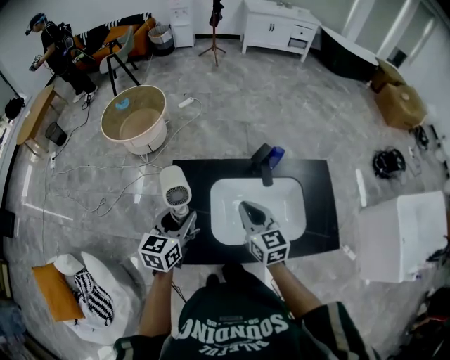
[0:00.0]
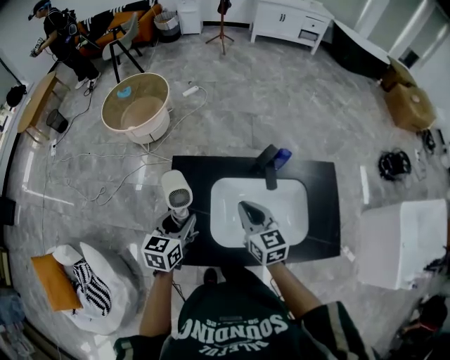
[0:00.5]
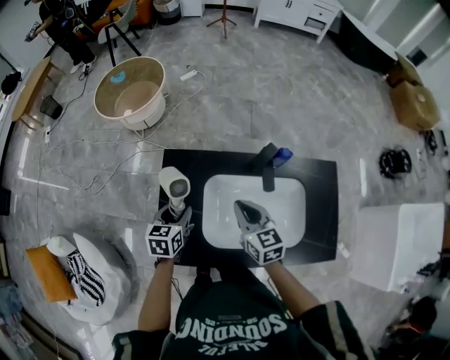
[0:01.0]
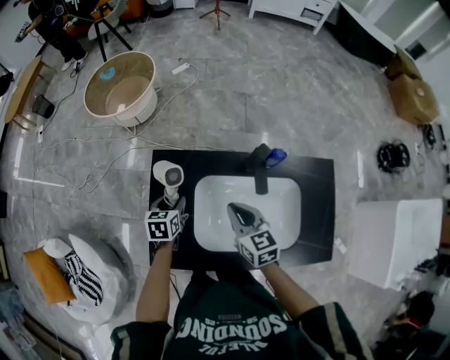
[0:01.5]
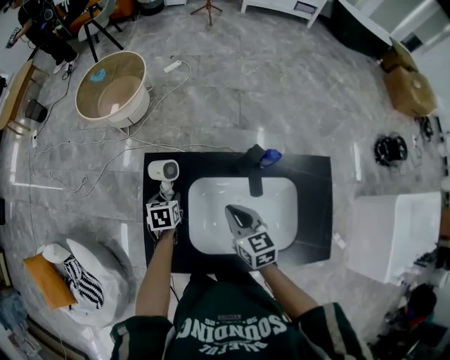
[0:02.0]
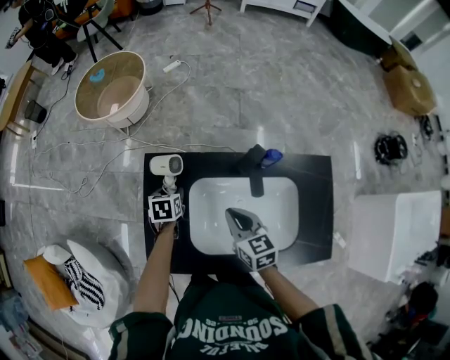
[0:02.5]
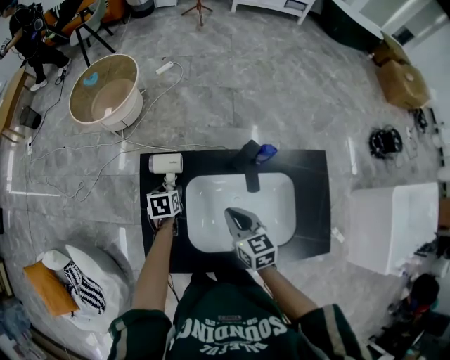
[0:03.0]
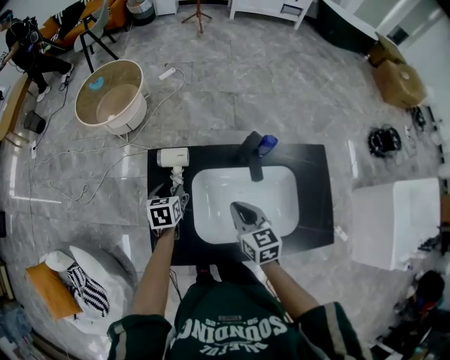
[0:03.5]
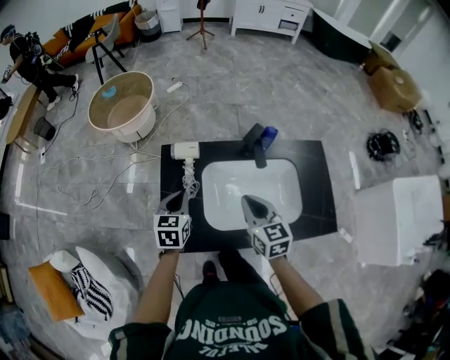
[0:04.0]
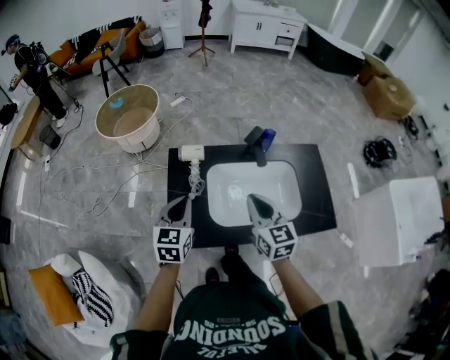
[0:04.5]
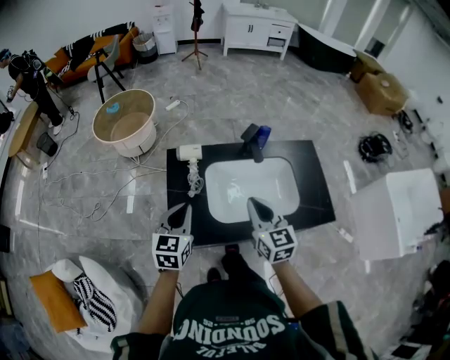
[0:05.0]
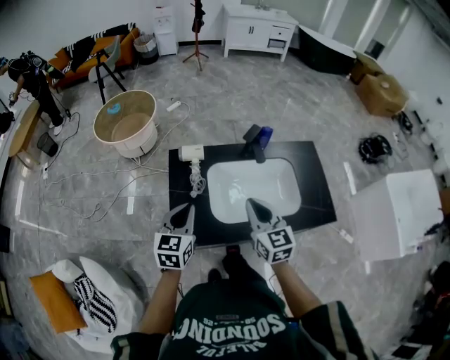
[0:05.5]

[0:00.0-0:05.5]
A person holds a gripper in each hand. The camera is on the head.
0:00.0 to 0:02.0: The left gripper heads downward and forward, covering roughly 25 cm, and tips its fingers downward by approximately 40 degrees. Meanwhile the right gripper heads downward and forward, covering about 10 cm.
0:02.0 to 0:03.5: The grippers stay close to where they were, moving slightly.
0:03.5 to 0:05.5: The left gripper heads backward and upward, covering some 25 cm, turns by some 30 degrees, and closes. Meanwhile the right gripper heads backward and upward, covering some 15 cm.

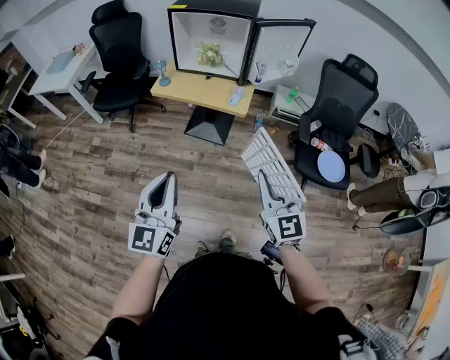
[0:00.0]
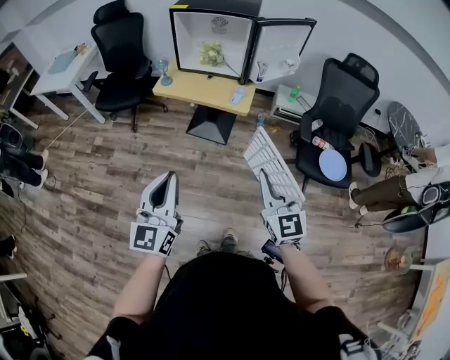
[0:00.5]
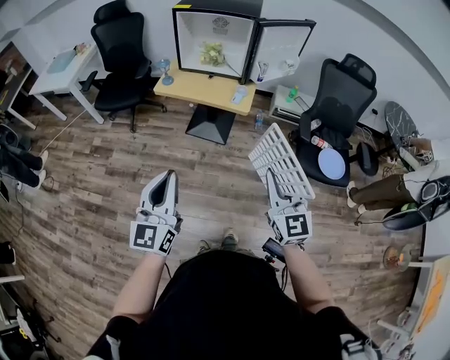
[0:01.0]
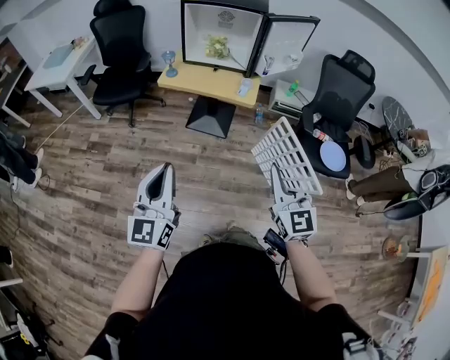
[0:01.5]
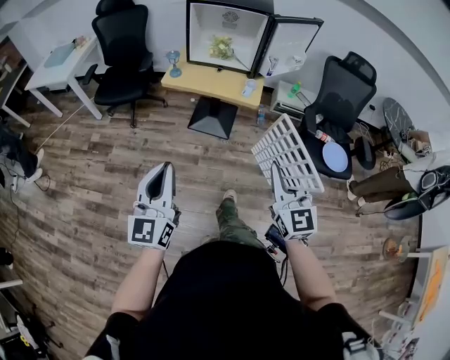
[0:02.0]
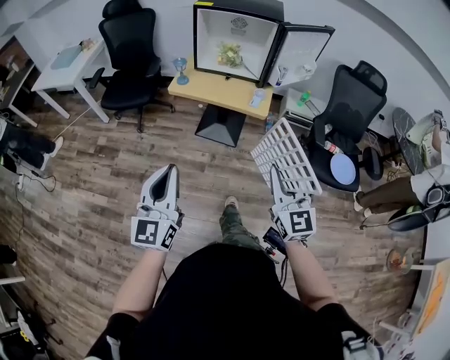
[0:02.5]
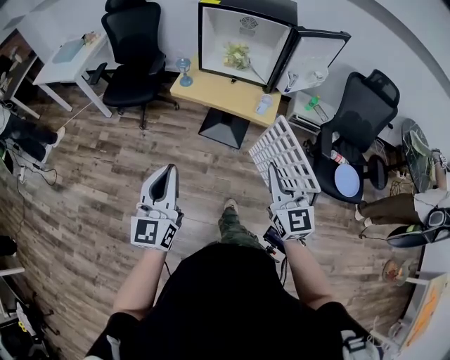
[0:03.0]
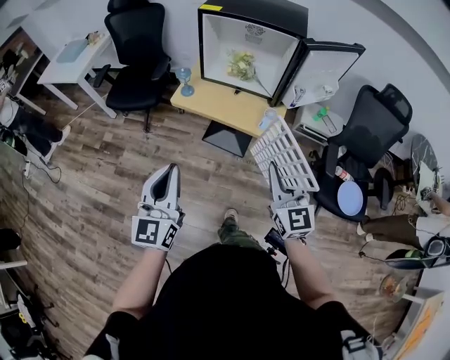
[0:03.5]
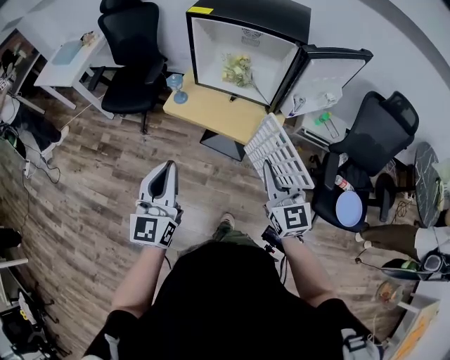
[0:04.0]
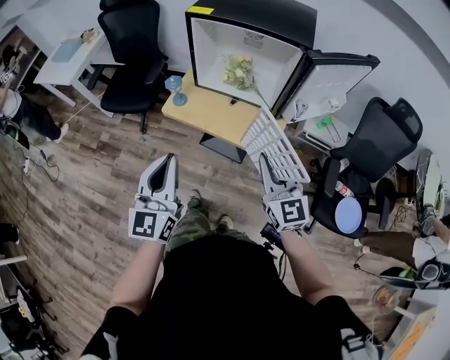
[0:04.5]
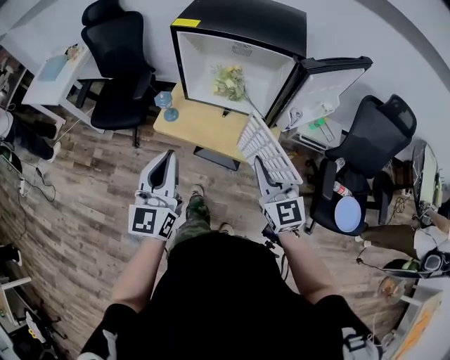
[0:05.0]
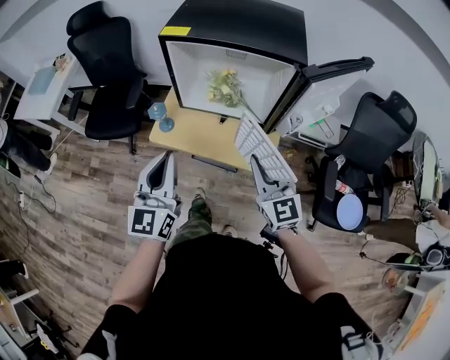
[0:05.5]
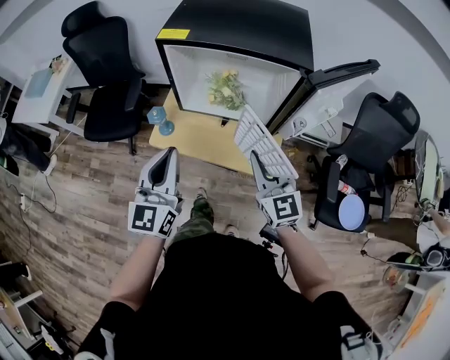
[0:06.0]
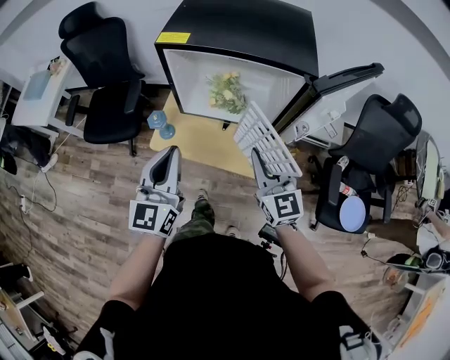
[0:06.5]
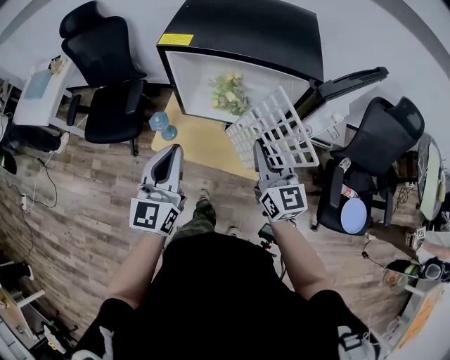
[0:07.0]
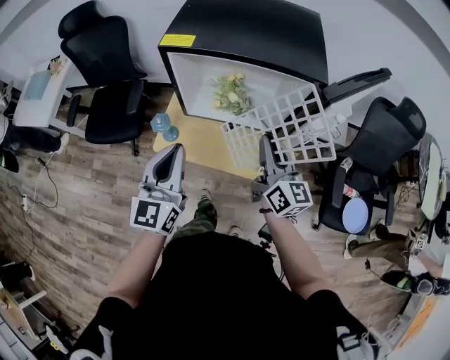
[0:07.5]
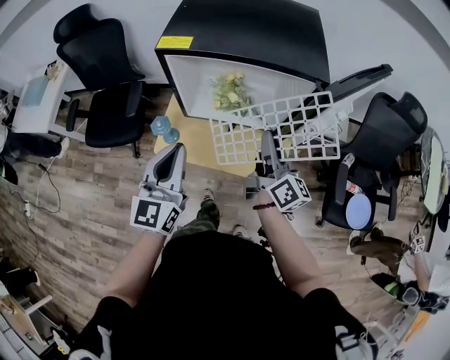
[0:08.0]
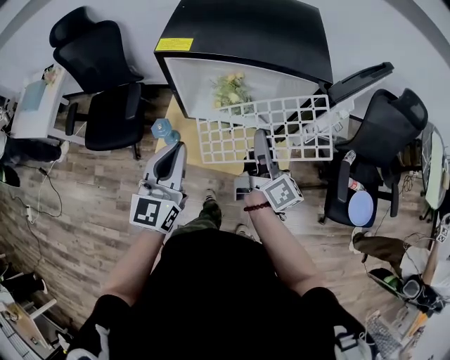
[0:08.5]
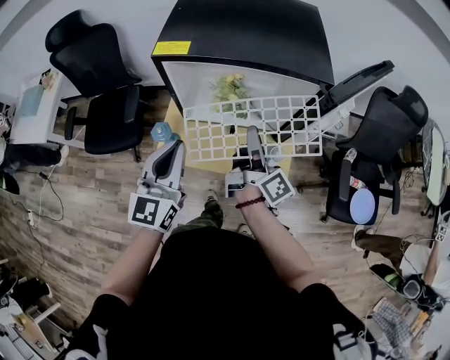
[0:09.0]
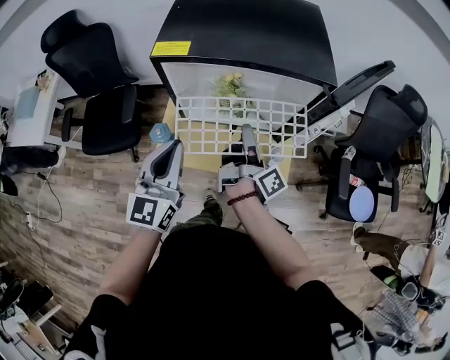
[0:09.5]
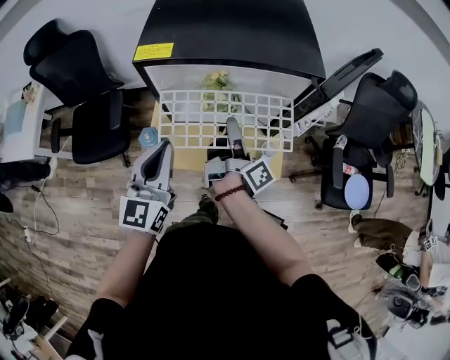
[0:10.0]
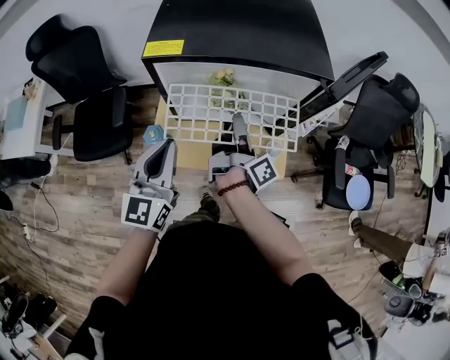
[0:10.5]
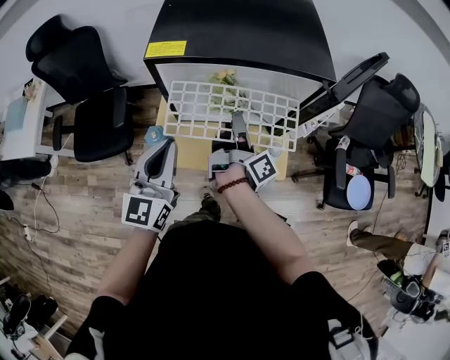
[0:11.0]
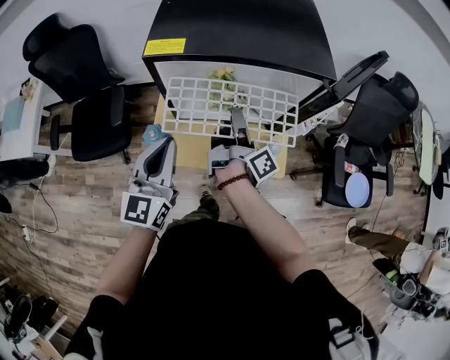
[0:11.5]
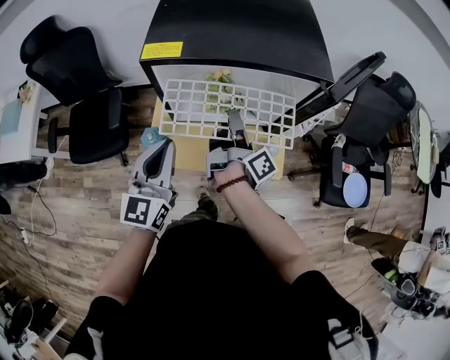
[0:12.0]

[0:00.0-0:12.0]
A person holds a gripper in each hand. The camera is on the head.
0:00.0 to 0:02.0: The left gripper heads to the left, covering approximately 10 cm; the right gripper is displaced to the left by roughly 5 cm.
0:02.0 to 0:04.0: The grippers both shift forward by some 30 cm.
0:04.0 to 0:06.0: Both grippers travel together forward, some 20 cm.
0:06.0 to 0:08.0: The grippers both shift forward by about 10 cm. The right gripper rotates around the line of its fingers by some 60 degrees, clockwise from behind.
0:08.0 to 0:10.0: The right gripper heads to the left, covering approximately 5 cm, and rolls clockwise, seen from behind, by approximately 40 degrees.
0:10.0 to 0:12.0: There are only small adjustments of the grippers.

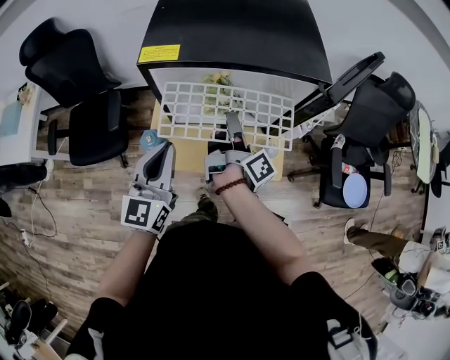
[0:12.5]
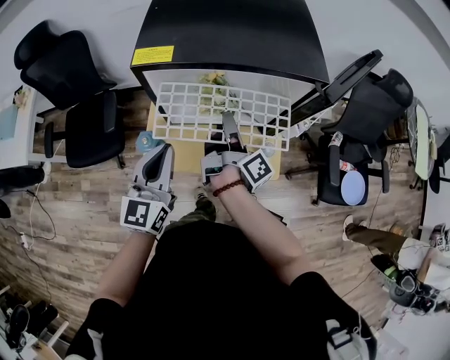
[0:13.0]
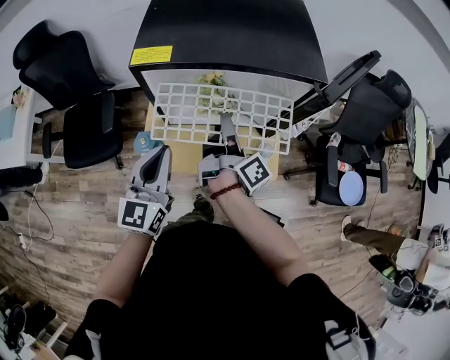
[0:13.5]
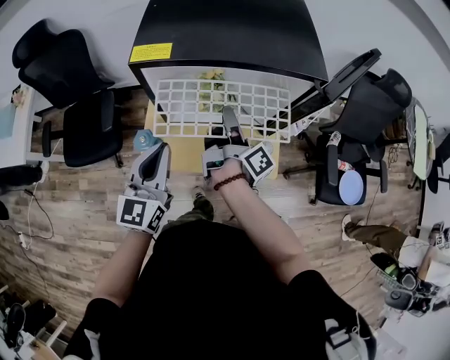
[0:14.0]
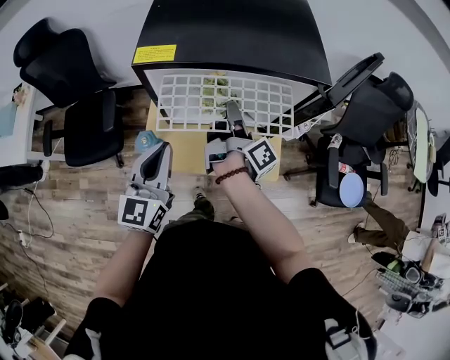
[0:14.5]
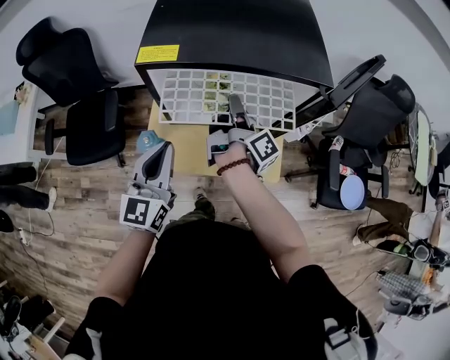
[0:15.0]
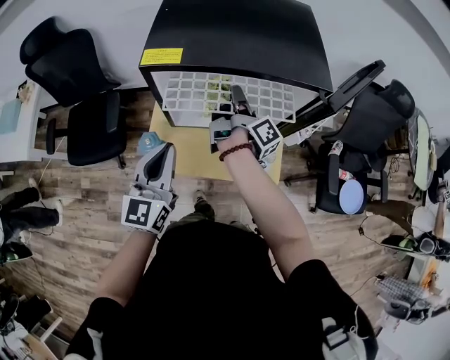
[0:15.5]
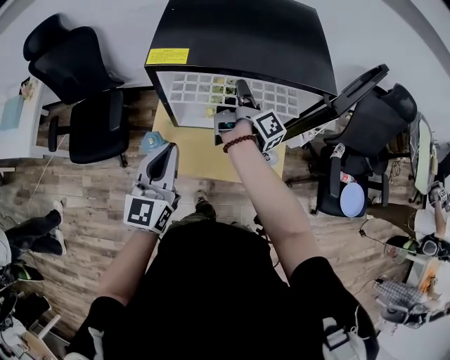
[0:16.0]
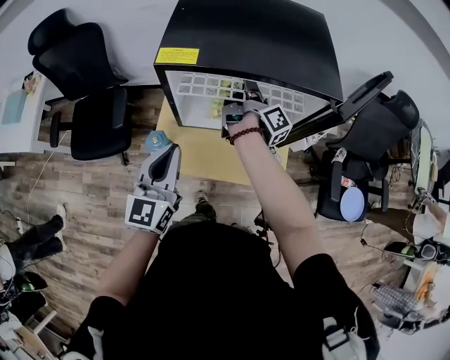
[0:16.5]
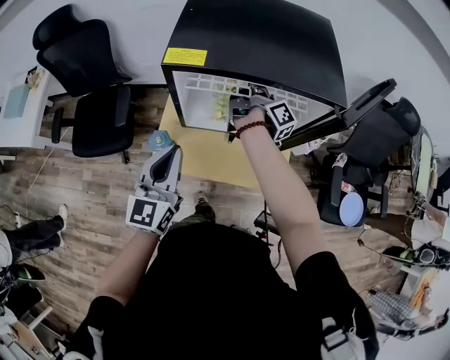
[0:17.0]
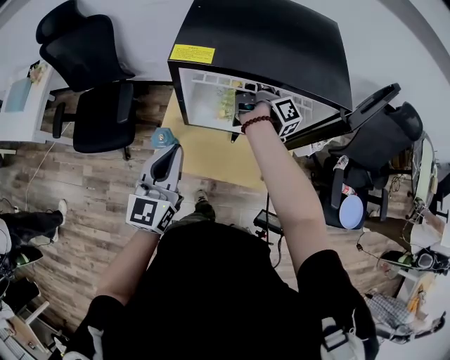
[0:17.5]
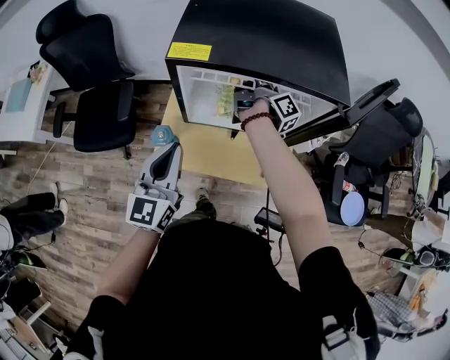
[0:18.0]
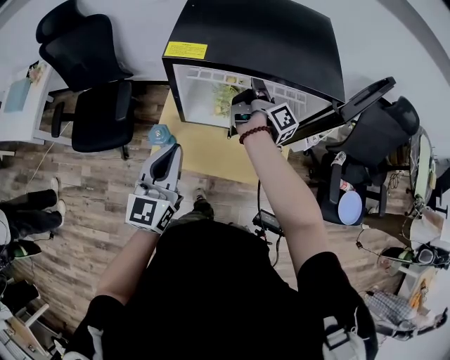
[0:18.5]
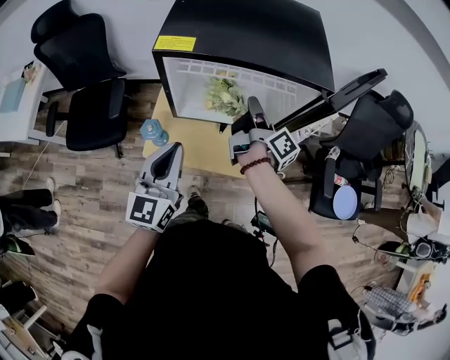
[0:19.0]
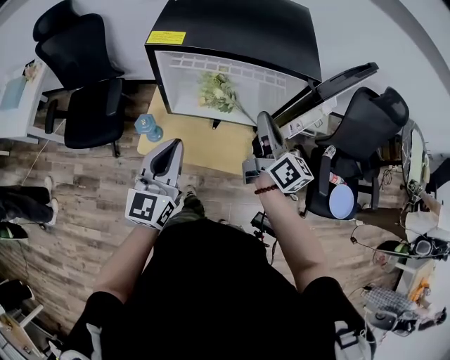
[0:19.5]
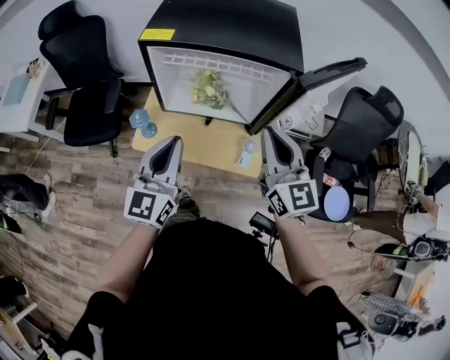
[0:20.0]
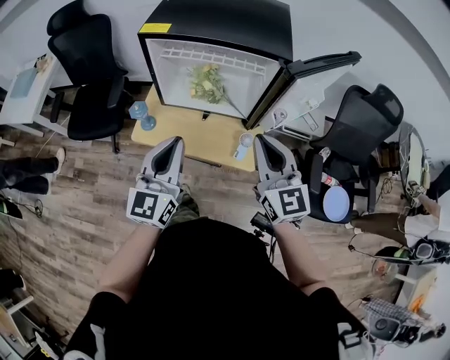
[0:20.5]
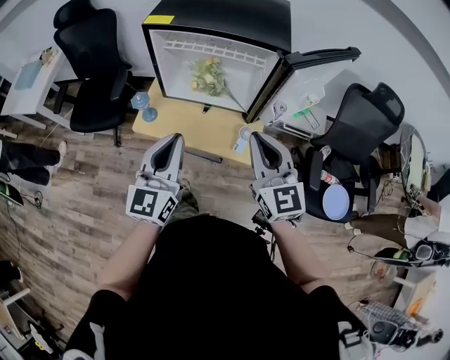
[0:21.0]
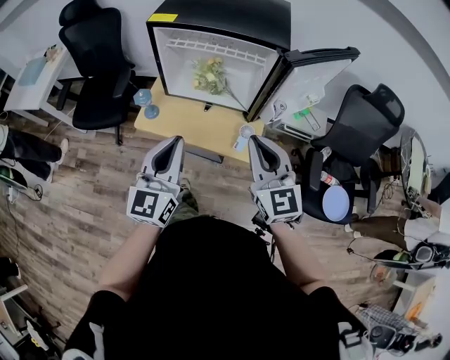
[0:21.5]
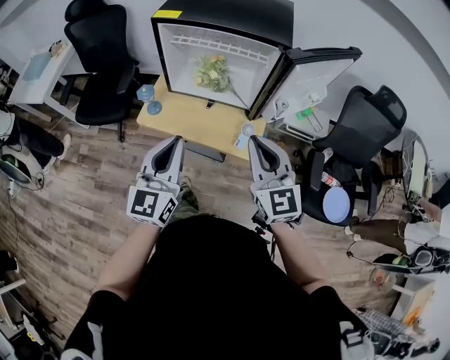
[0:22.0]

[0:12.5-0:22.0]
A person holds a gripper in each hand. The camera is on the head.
0:12.5 to 0:14.5: The grippers stay close to where they were, moving slightly.
0:14.5 to 0:16.5: The right gripper heads forward, covering approximately 10 cm.
0:16.5 to 0:18.0: There are only small adjustments of the grippers.
0:18.0 to 0:20.0: The right gripper heads backward and upward, covering some 30 cm, and rotates around the line of its fingers by approximately 90 degrees, counterclockwise from behind. The left gripper moves to the right and backward, roughly 10 cm.
0:20.0 to 0:22.0: Both grippers move backward, about 10 cm.
